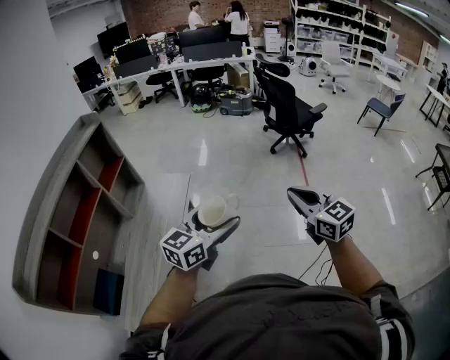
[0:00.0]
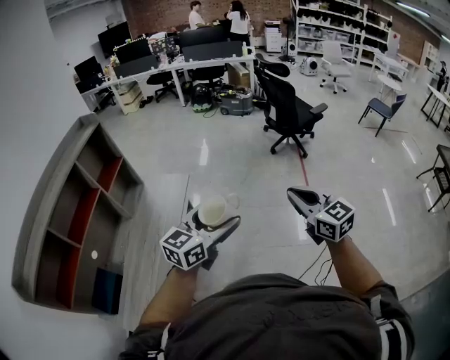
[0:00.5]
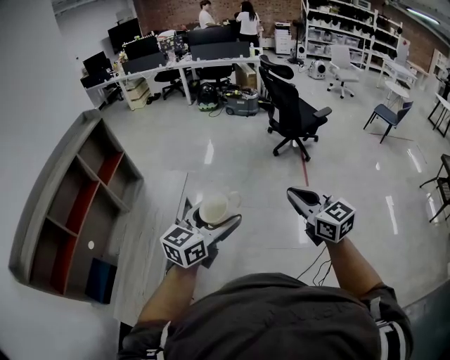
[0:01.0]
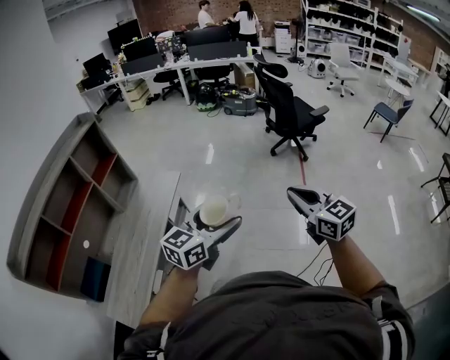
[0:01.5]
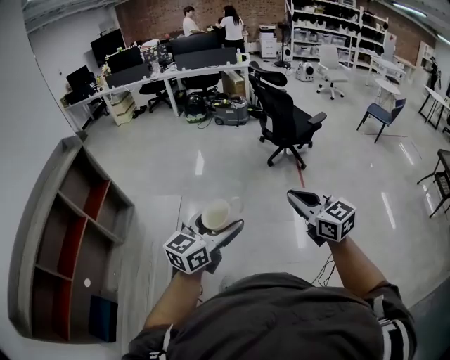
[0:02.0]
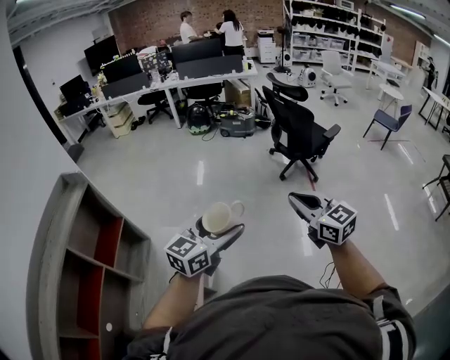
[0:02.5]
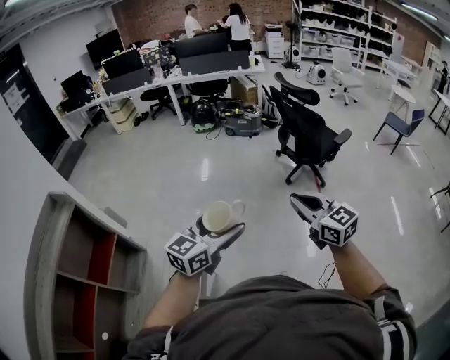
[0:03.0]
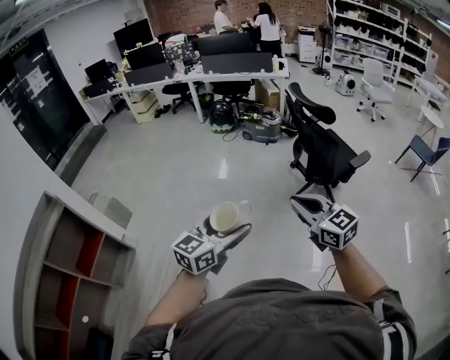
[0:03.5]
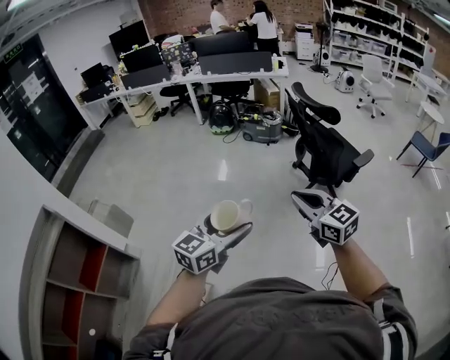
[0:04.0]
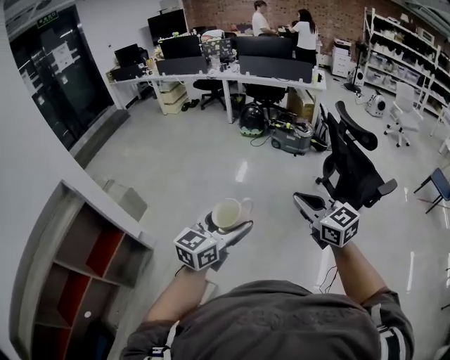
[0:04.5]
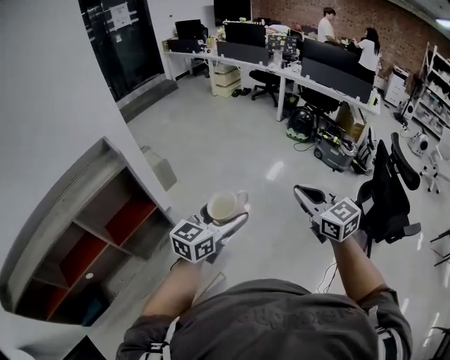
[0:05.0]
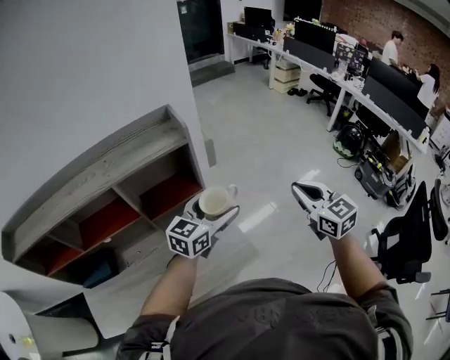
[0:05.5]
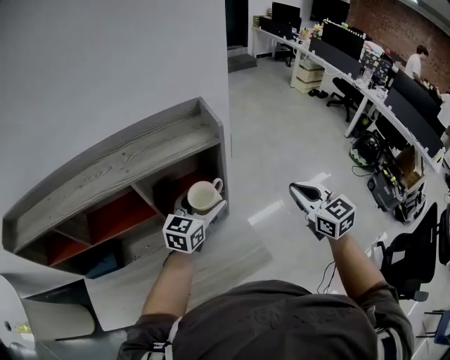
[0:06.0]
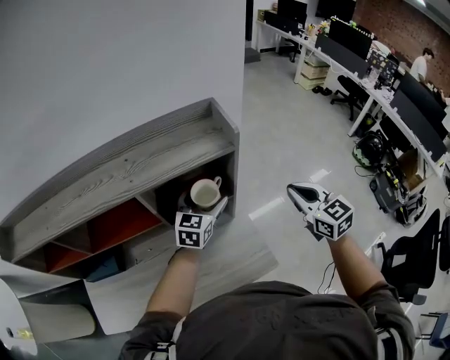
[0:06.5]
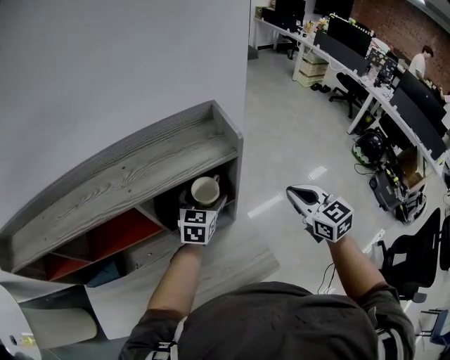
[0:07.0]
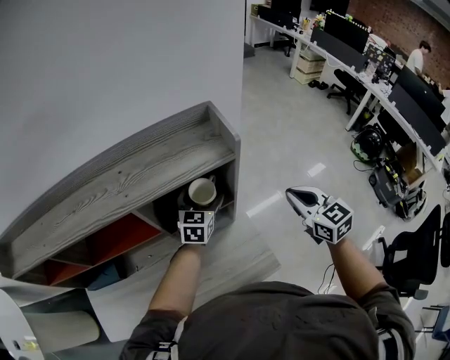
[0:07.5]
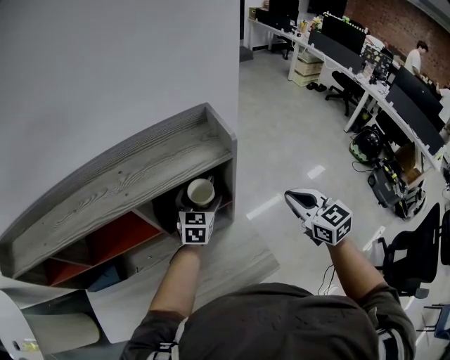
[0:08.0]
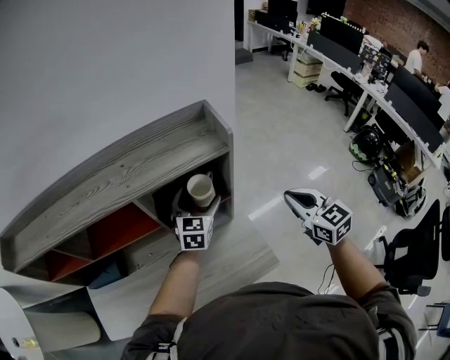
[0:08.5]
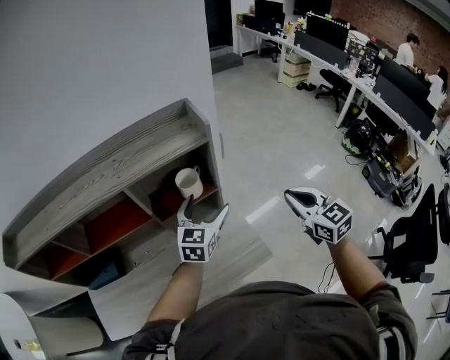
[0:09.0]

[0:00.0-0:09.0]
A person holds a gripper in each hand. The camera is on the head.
0:00.0 to 0:02.0: Both grippers move forward, about 15 cm.
0:02.0 to 0:04.5: Both grippers are carried forward, approximately 50 cm.
0:04.5 to 0:07.0: The two grippers travel together, approximately 60 cm. The right gripper changes its angle by roughly 40 degrees. Meanwhile the left gripper rotates roughly 70 degrees.
0:07.0 to 0:09.0: Both grippers move backward, some 10 cm.

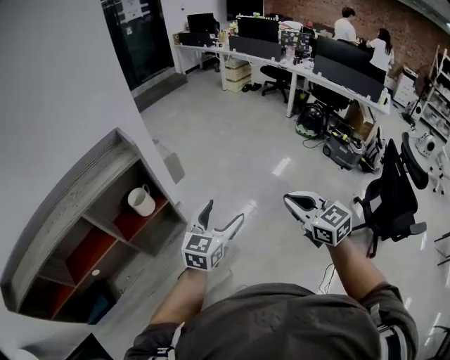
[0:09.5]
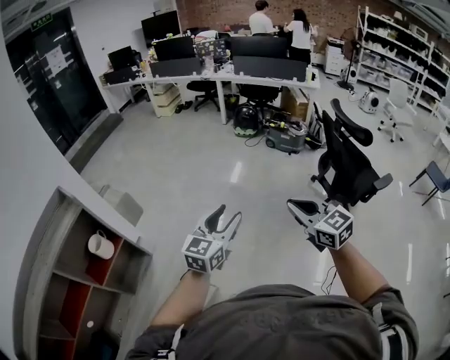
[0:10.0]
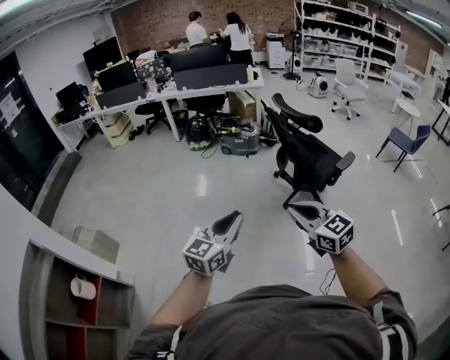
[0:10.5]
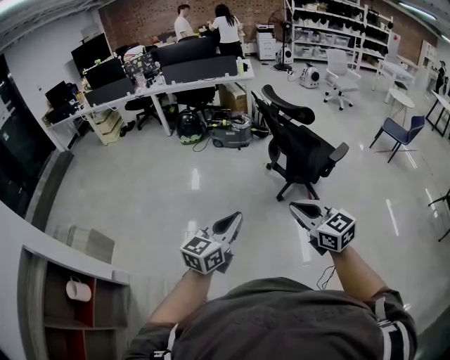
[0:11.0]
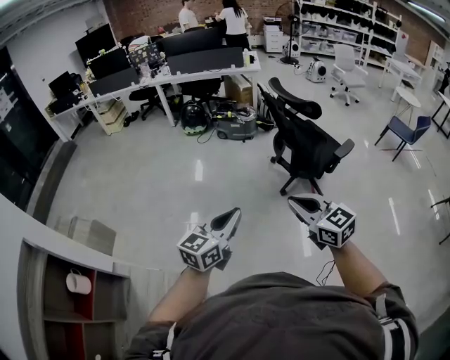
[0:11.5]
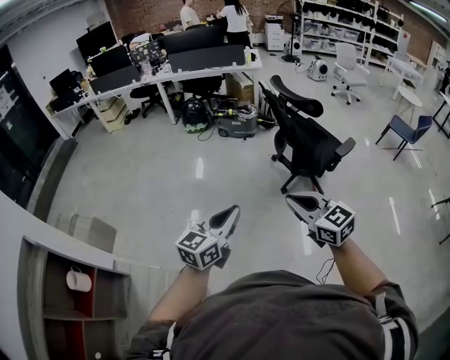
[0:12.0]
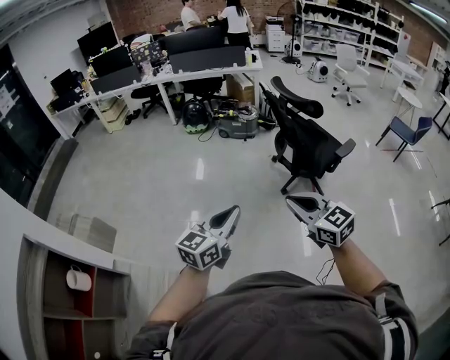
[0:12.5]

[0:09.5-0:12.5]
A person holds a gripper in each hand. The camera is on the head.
0:09.5 to 0:11.0: The right gripper changes place by about 40 cm, and rotates approximately 40 degrees. Meanwhile the left gripper changes place by some 40 cm, turns by about 50 degrees, and closes.
0:11.0 to 0:12.5: The grippers move only a little.

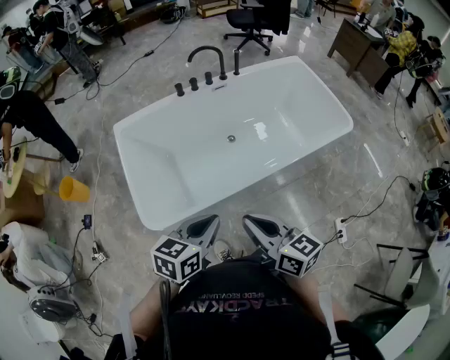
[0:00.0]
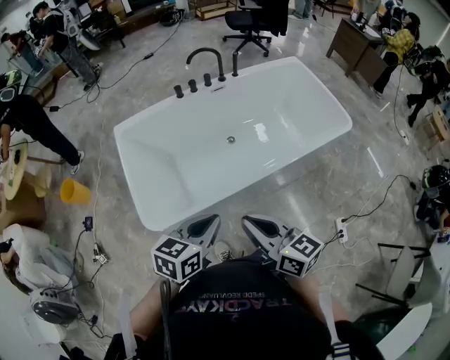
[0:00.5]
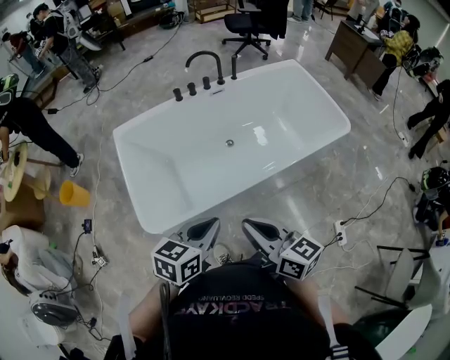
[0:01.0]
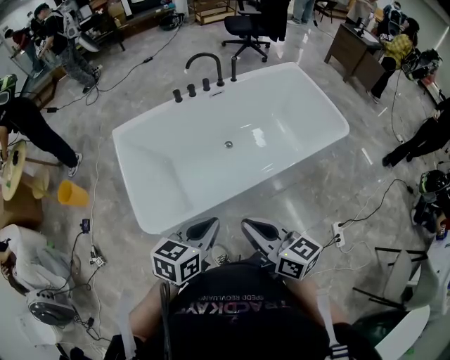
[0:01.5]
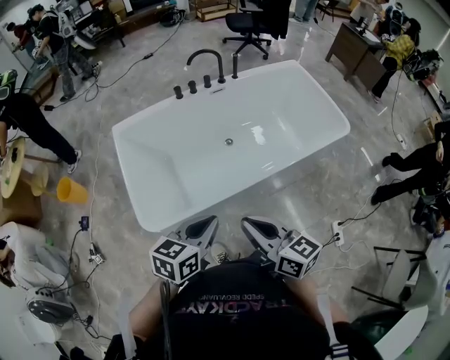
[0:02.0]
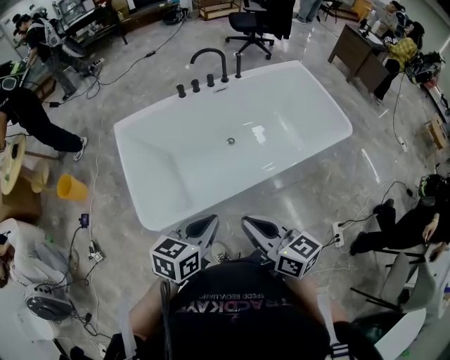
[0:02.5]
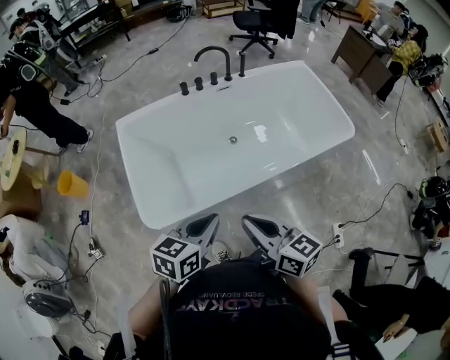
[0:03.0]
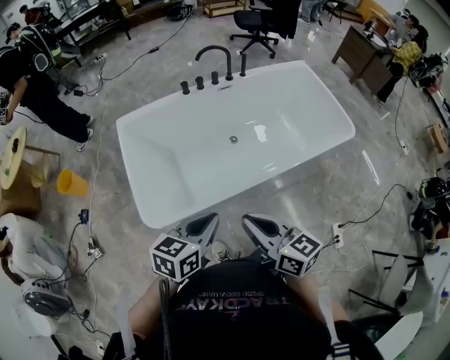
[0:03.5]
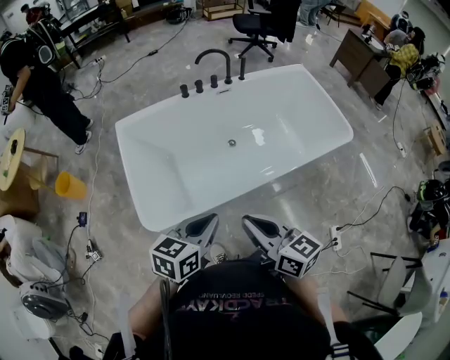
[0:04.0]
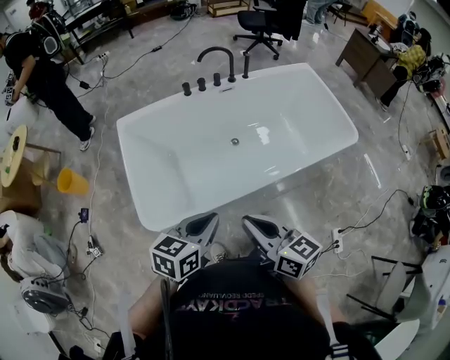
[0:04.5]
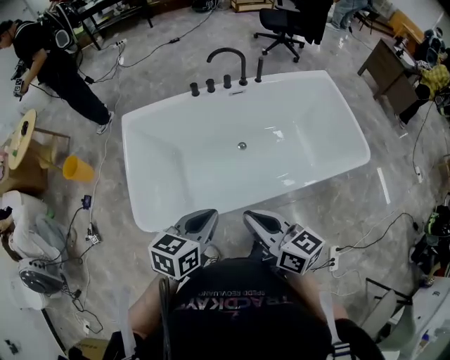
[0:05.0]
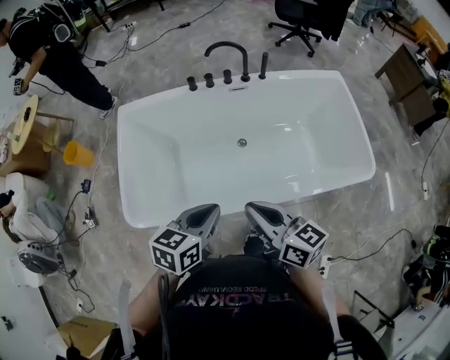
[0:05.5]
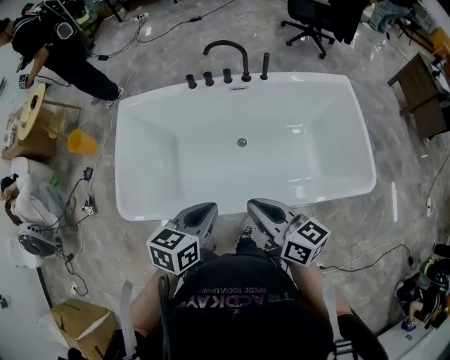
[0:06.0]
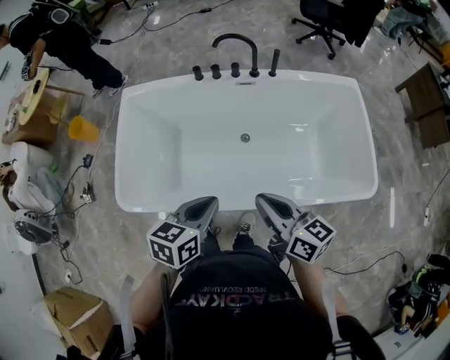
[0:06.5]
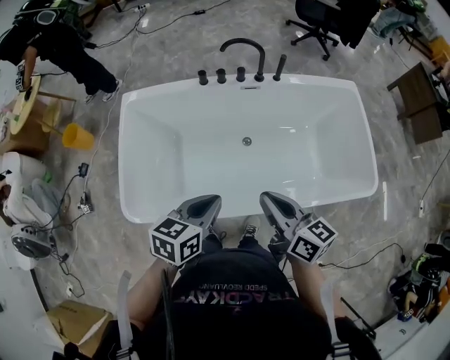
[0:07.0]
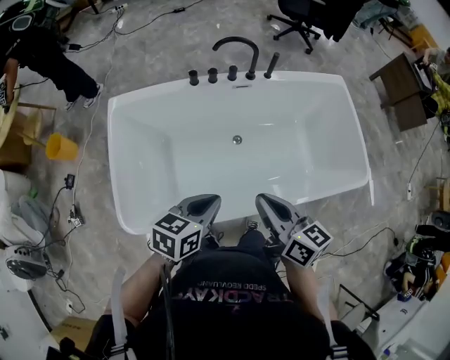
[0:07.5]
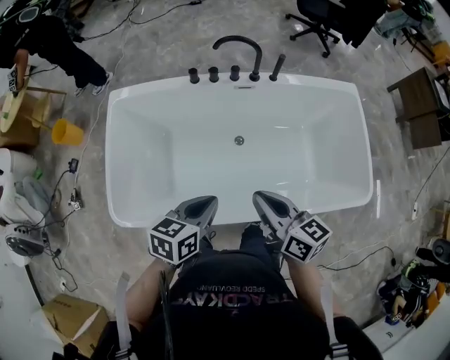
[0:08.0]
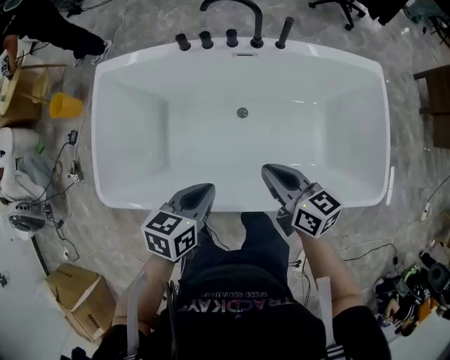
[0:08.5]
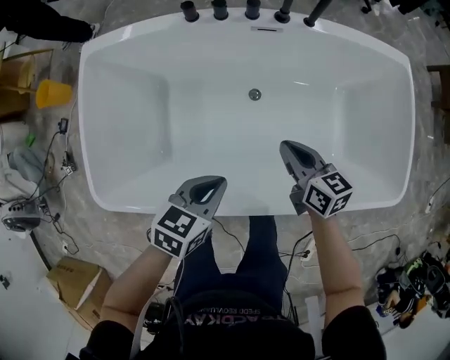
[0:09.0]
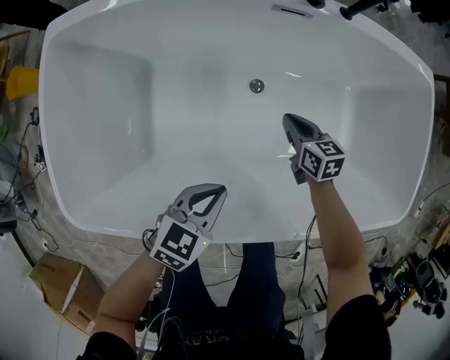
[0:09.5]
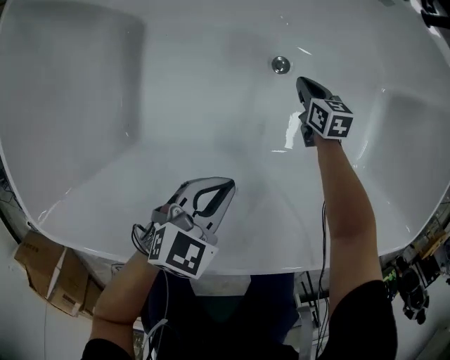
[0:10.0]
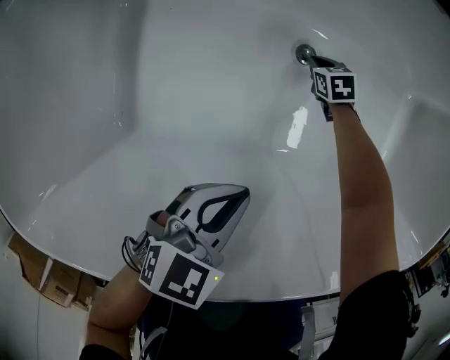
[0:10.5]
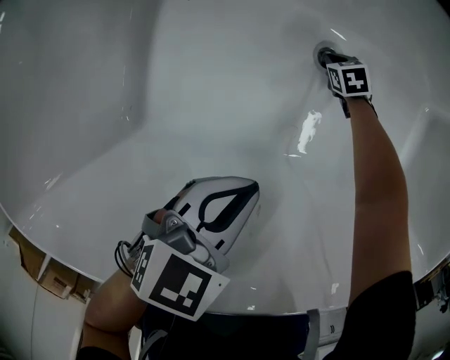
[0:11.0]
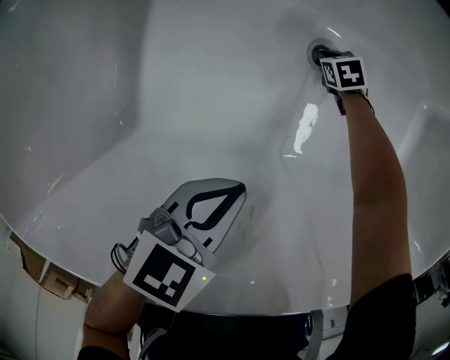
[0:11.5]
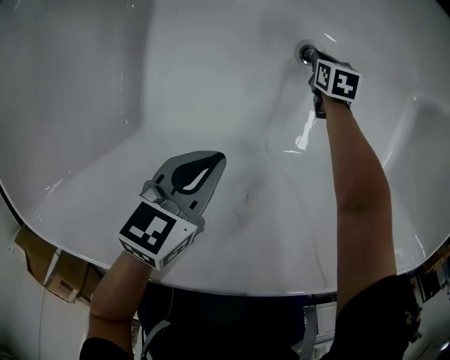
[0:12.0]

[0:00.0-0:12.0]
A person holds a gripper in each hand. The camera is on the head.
0:00.0 to 0:02.0: Neither gripper changes place.
0:02.0 to 0:04.0: There are only small adjustments of the grippers.
0:04.0 to 0:06.0: Both grippers move to the right and forward, roughly 25 cm. The right gripper swivels approximately 20 degrees. The left gripper turns by approximately 20 degrees.
0:06.0 to 0:08.0: The two grippers go approximately 10 cm forward. The right gripper moves roughly 10 cm to the left and comes back.
0:08.0 to 0:10.0: The right gripper moves downward and forward, approximately 60 cm, and tips its fingers downward by about 40 degrees, while the left gripper shifts about 30 cm downward, and turns by approximately 20 degrees.
0:10.0 to 0:12.0: The left gripper is displaced downward by roughly 5 cm, and turns by some 30 degrees, while the right gripper moves downward, approximately 10 cm.

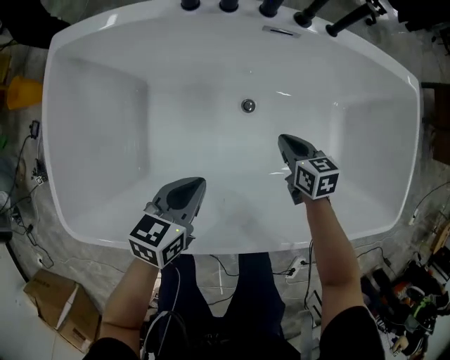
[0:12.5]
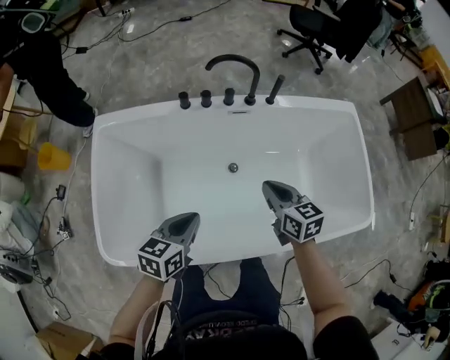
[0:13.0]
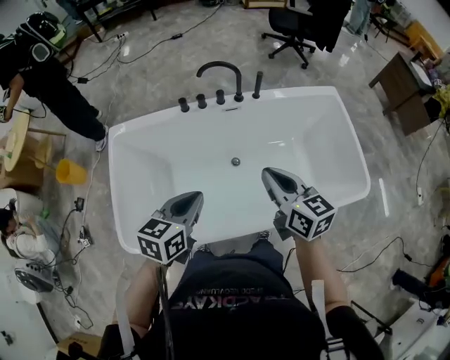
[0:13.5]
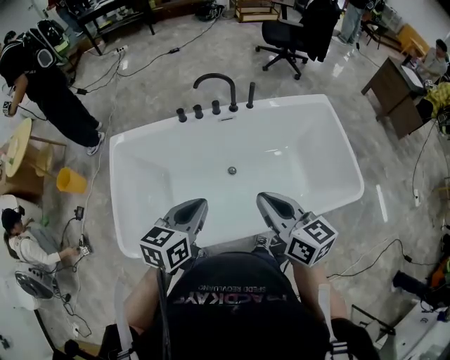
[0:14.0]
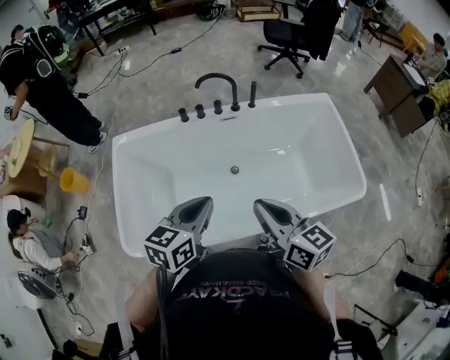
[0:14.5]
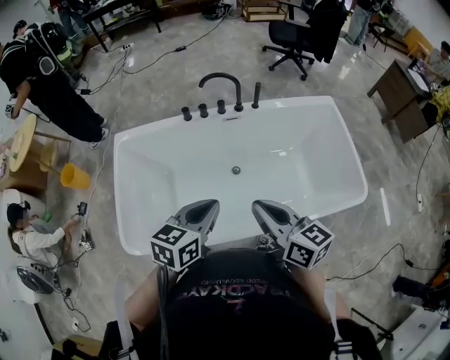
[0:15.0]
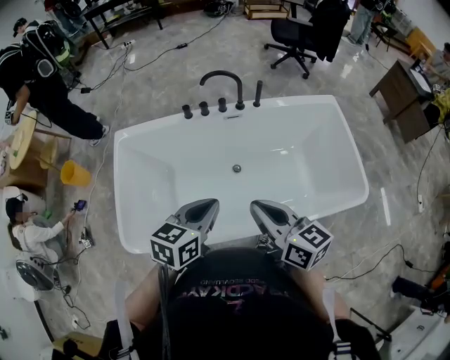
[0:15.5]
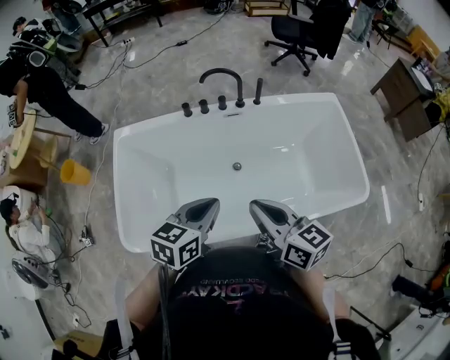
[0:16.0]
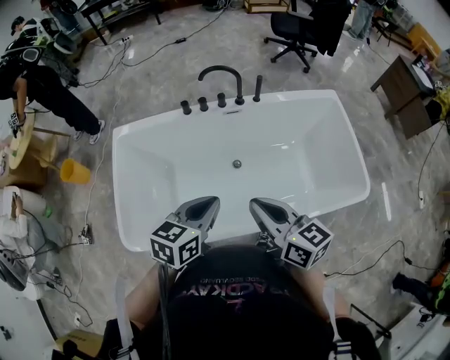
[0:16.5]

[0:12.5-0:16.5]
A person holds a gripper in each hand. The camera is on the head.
0:12.5 to 0:14.5: The right gripper shifts about 50 cm upward and backward, and tilts its fingers some 40 degrees upward. The left gripper heads upward, covering some 30 cm.
0:14.5 to 0:16.5: The grippers make only small movements.
